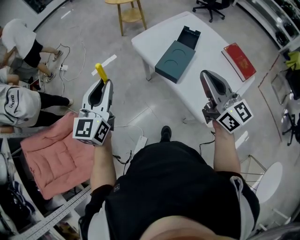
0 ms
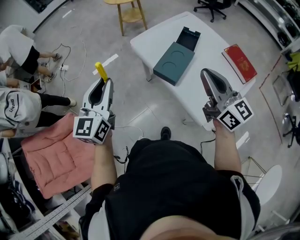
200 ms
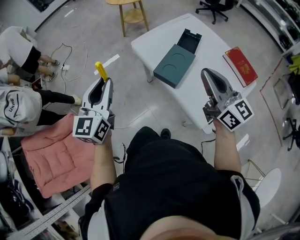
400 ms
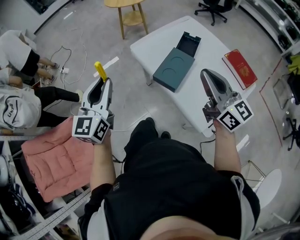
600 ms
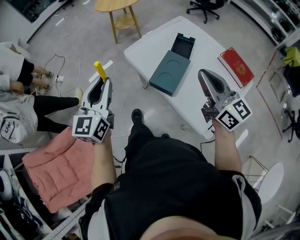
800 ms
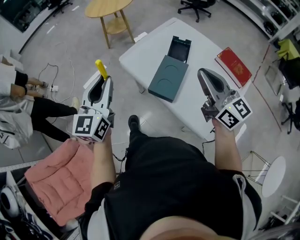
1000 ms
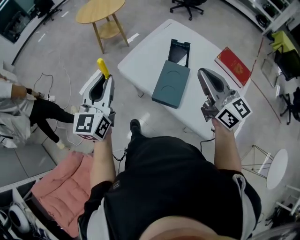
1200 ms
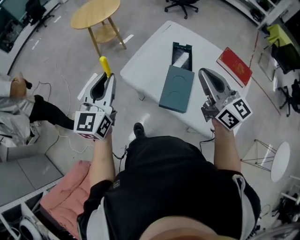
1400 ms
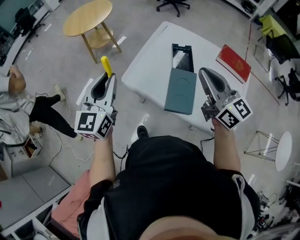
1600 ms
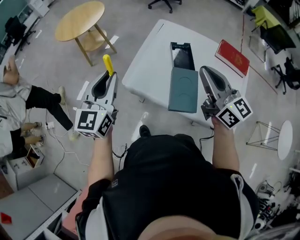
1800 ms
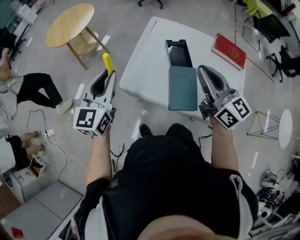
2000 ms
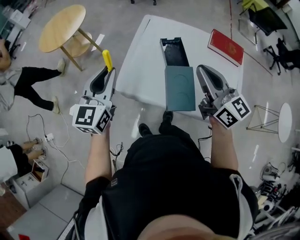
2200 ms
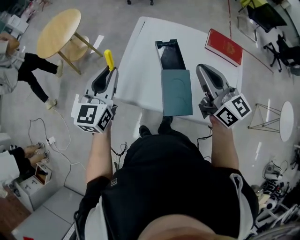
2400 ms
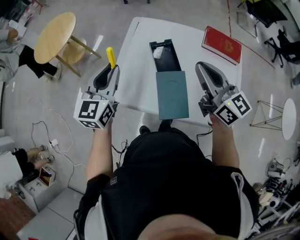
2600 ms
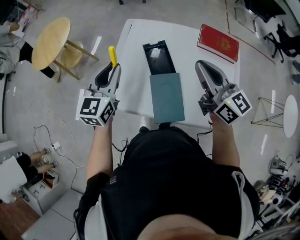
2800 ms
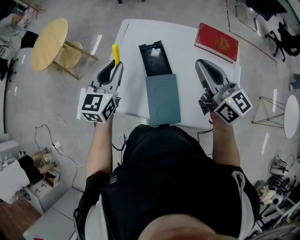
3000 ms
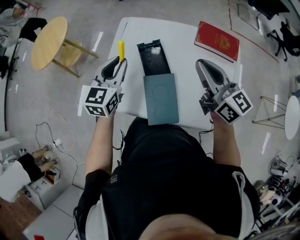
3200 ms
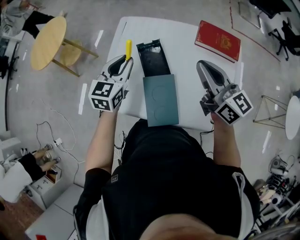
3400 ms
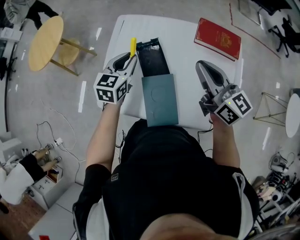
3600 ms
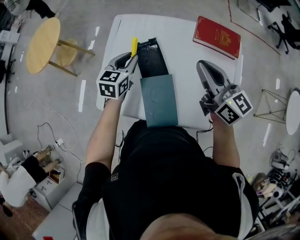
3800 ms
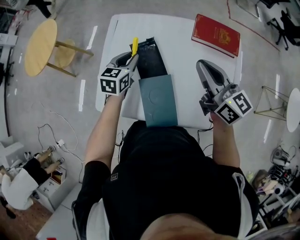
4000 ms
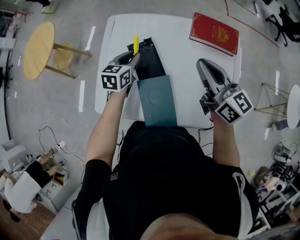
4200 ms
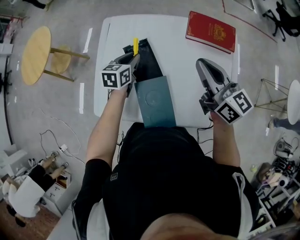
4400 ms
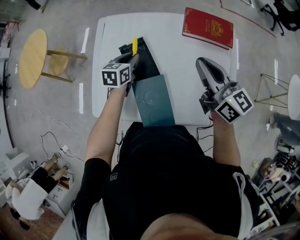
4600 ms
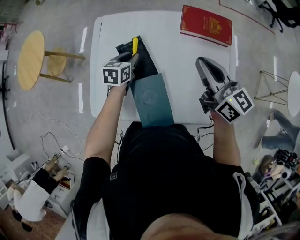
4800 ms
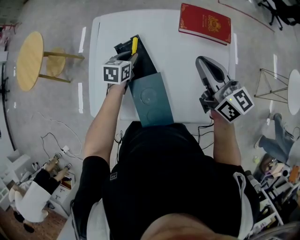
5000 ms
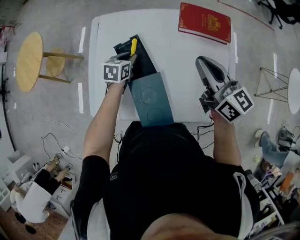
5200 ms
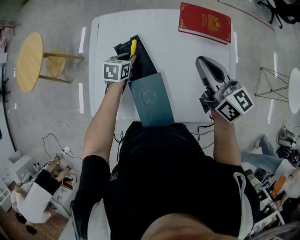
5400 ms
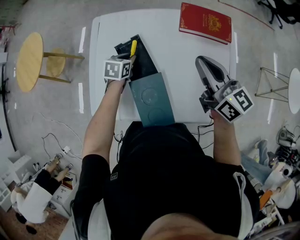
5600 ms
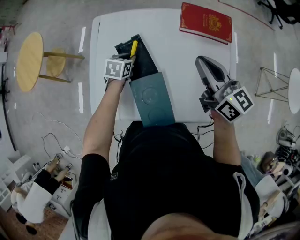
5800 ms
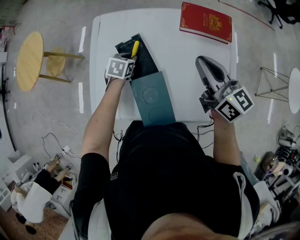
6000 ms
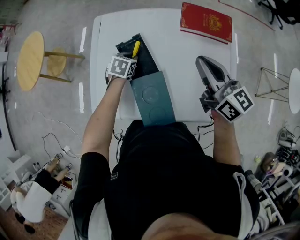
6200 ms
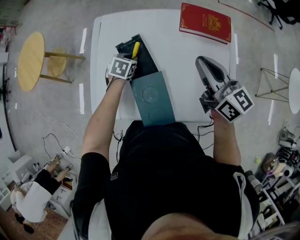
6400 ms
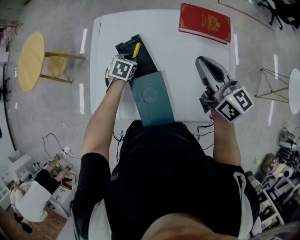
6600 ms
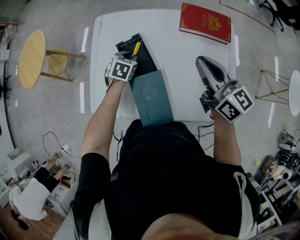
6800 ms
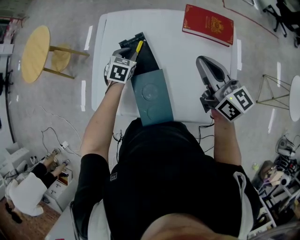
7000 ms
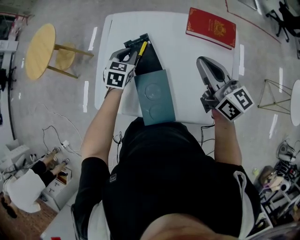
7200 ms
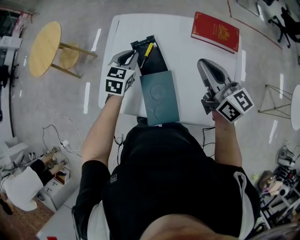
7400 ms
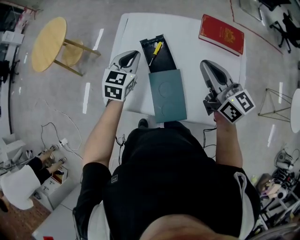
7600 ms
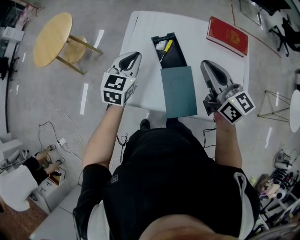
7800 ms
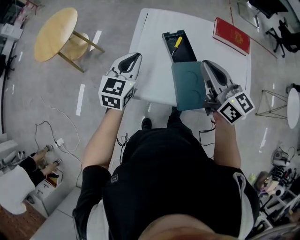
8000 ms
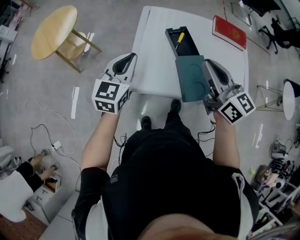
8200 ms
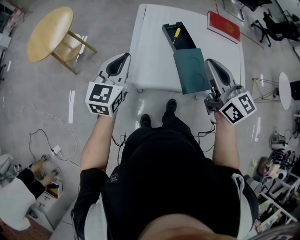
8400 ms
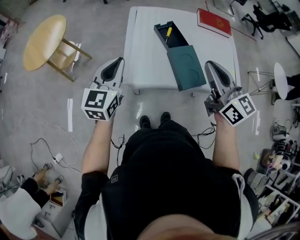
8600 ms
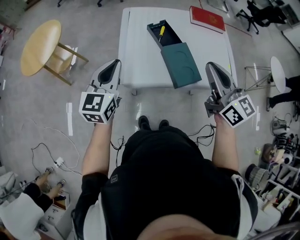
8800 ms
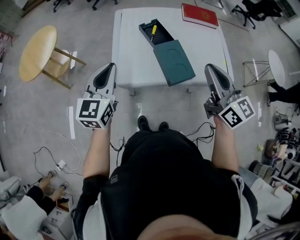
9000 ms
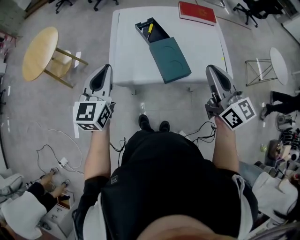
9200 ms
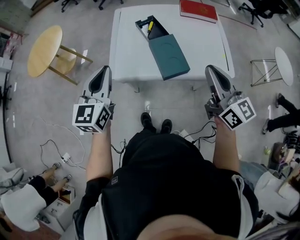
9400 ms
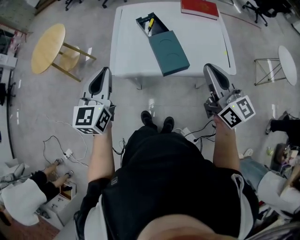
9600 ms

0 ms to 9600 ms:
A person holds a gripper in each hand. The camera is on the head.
0 ms to 1600 ms: The grippers both shift forward by some 30 cm. The right gripper changes its angle by approximately 20 degrees. The left gripper changes its angle by some 20 degrees.
1600 ms to 3200 ms: The left gripper goes approximately 30 cm forward, to the right and downward, and changes its angle by approximately 30 degrees. The right gripper travels to the right and forward by roughly 15 cm.
3200 ms to 4800 ms: The left gripper is displaced downward, to the right and forward by roughly 25 cm, and turns by some 30 degrees, while the right gripper shifts roughly 5 cm to the right.
4800 ms to 6400 ms: The left gripper moves downward, about 5 cm, and turns by approximately 20 degrees.
6400 ms to 8000 ms: The left gripper is displaced upward, to the left and backward by approximately 35 cm, and tips its fingers upward by about 40 degrees, while the right gripper is displaced to the left and backward by approximately 20 cm.
8000 ms to 9600 ms: The grippers both shift backward by roughly 25 cm.

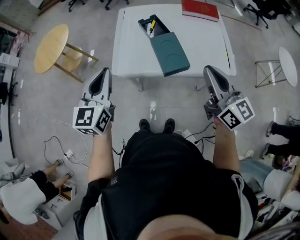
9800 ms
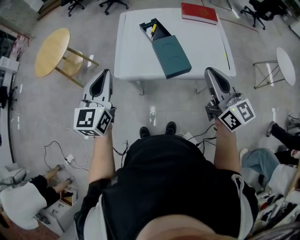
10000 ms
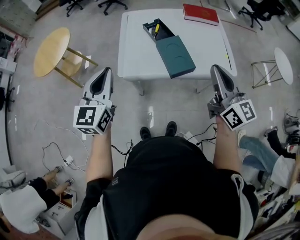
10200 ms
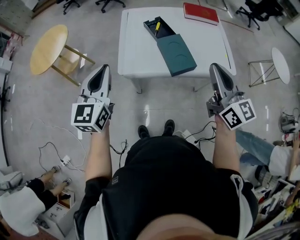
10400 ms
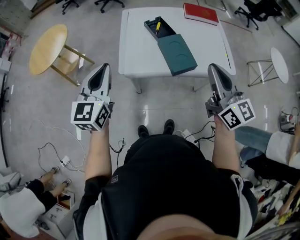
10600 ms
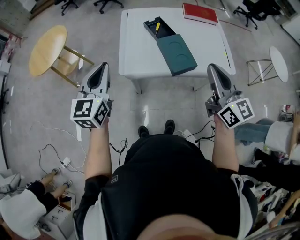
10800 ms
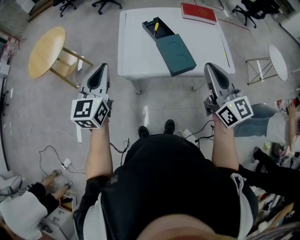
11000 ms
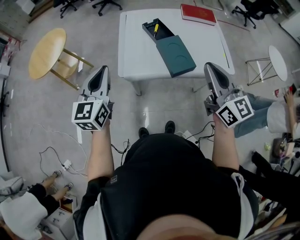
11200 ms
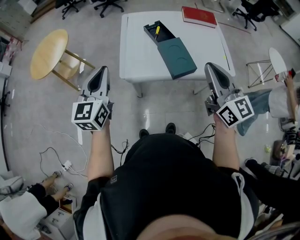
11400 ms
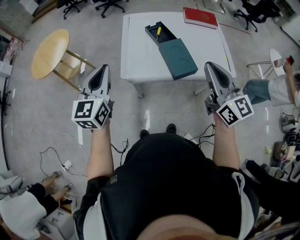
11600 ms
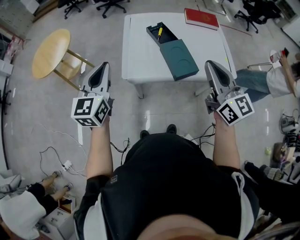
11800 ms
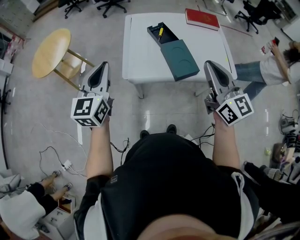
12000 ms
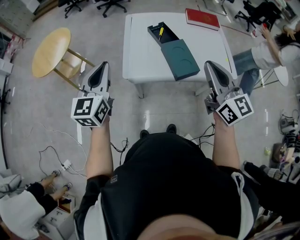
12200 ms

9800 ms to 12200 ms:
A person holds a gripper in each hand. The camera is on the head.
9800 ms to 11000 ms: Both grippers travel together to the left, roughly 10 cm.
11000 ms to 12200 ms: The grippers make only small movements.

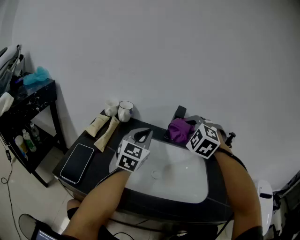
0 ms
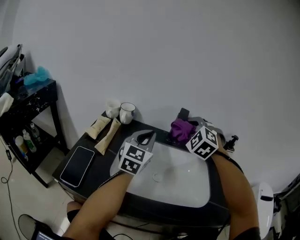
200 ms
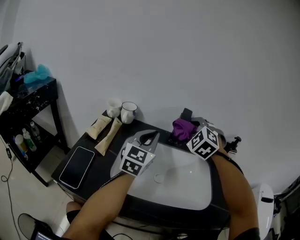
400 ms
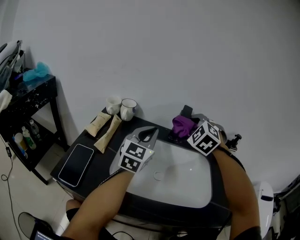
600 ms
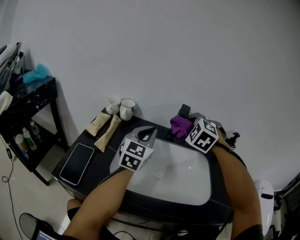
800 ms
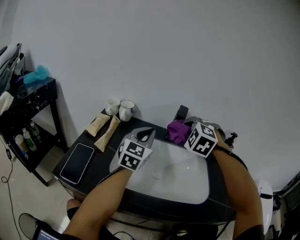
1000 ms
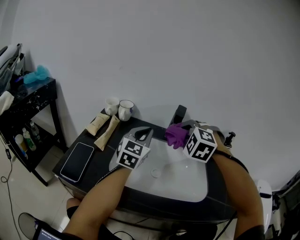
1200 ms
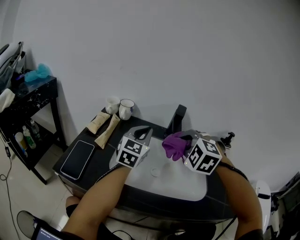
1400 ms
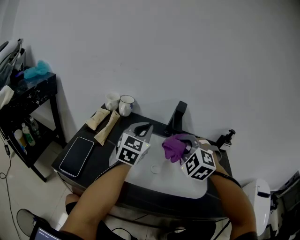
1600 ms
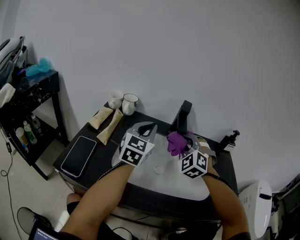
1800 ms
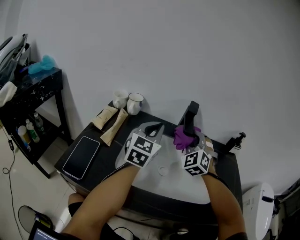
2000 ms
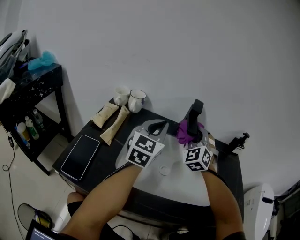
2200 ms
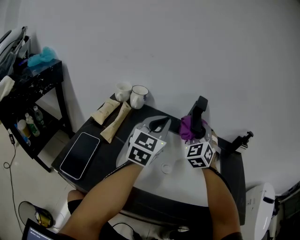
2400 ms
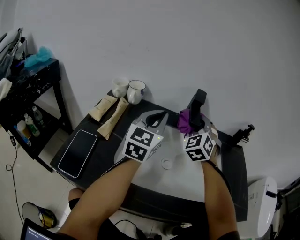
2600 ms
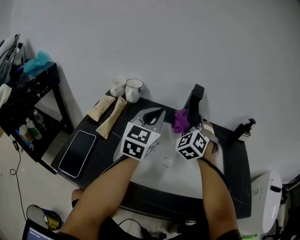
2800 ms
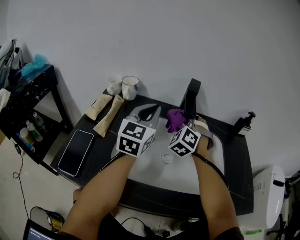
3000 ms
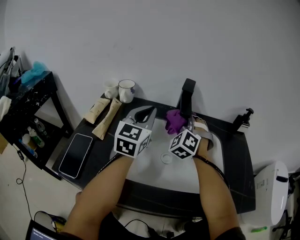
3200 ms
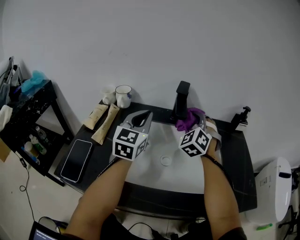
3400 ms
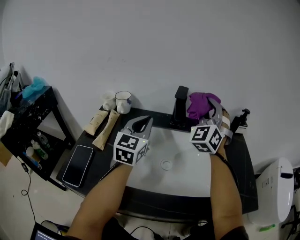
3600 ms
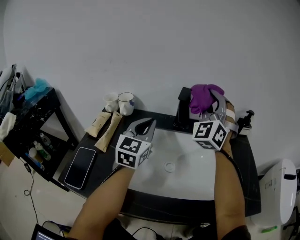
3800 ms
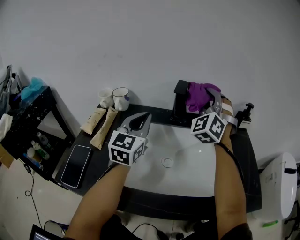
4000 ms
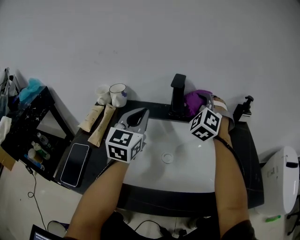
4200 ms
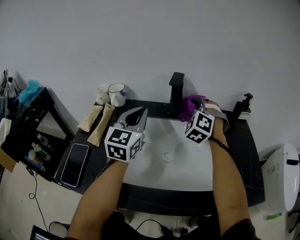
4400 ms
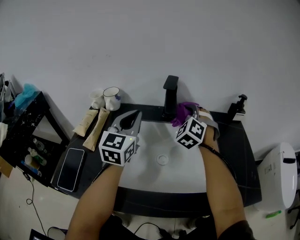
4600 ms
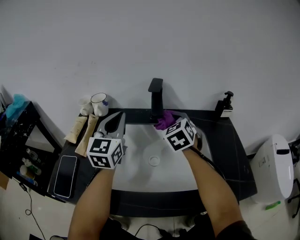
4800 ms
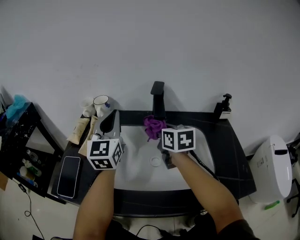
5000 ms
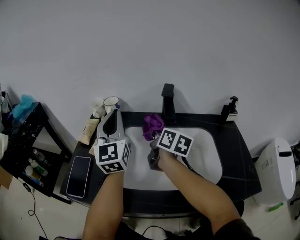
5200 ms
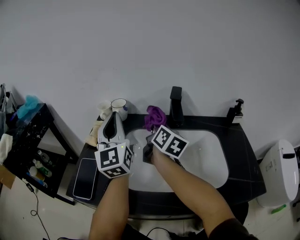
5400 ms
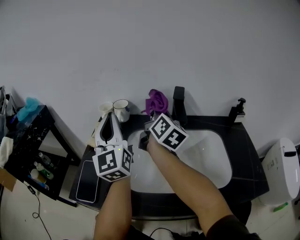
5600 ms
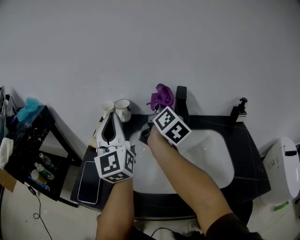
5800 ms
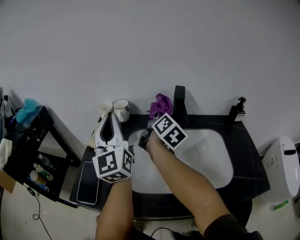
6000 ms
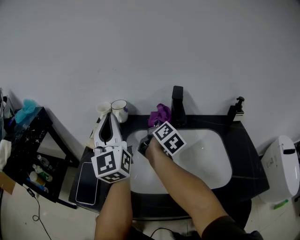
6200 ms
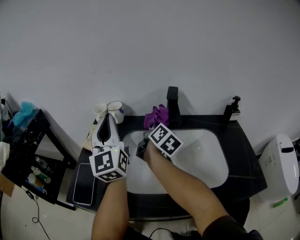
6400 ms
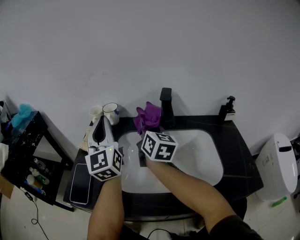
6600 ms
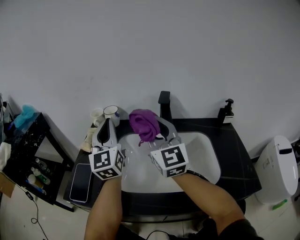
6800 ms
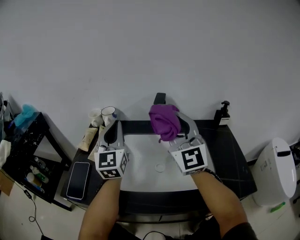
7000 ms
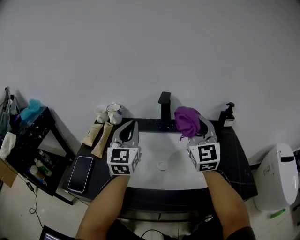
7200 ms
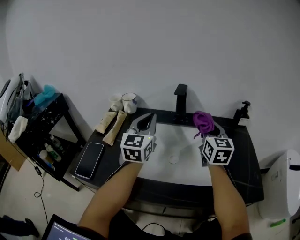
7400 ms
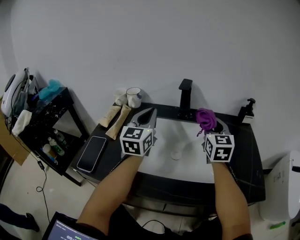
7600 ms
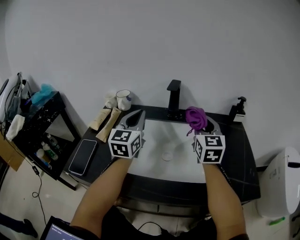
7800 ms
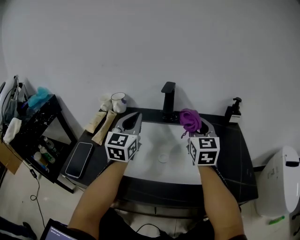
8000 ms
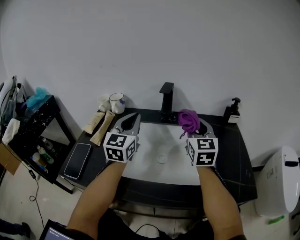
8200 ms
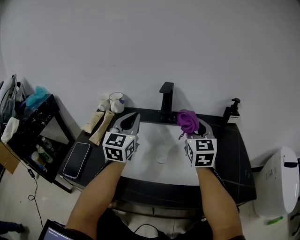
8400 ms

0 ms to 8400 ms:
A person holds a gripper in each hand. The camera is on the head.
0 ms to 1400 ms: The right gripper shifts some 10 cm backward.
1400 ms to 2800 ms: The right gripper moves forward and downward, some 15 cm, and rotates approximately 30 degrees.
2800 ms to 4200 ms: The right gripper is displaced to the right by some 5 cm, and travels upward and back again, some 15 cm each way.
4200 ms to 5600 ms: The right gripper shifts approximately 15 cm to the left, and rolls clockwise, seen from behind, by some 110 degrees; the left gripper moves to the left, upward and backward, about 20 cm, and changes its angle by some 40 degrees.
5600 ms to 7000 ms: The right gripper shifts approximately 20 cm backward, upward and to the right, and rotates around the line of its fingers by approximately 60 degrees, counterclockwise from behind. Meanwhile the left gripper is displaced to the right by about 10 cm.
7000 ms to 8400 ms: The left gripper heads to the right, covering about 5 cm. The right gripper heads downward, to the right and forward, covering some 15 cm, and rotates about 30 degrees.

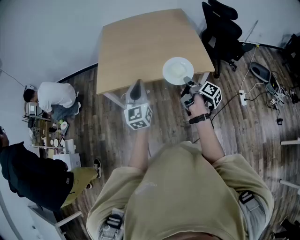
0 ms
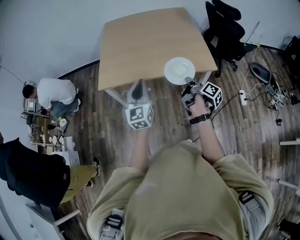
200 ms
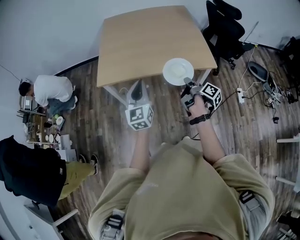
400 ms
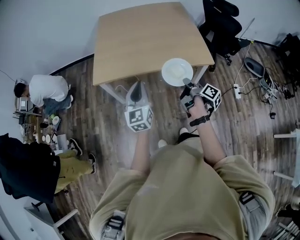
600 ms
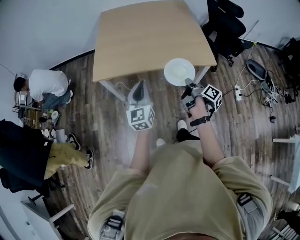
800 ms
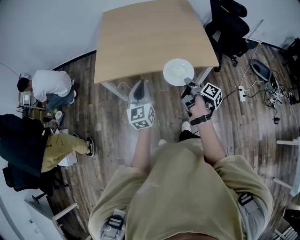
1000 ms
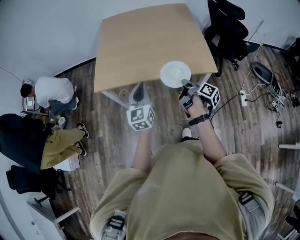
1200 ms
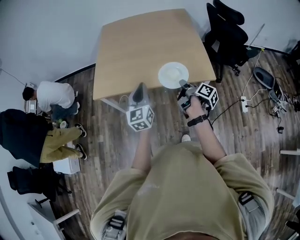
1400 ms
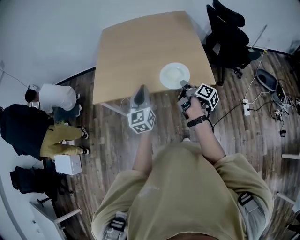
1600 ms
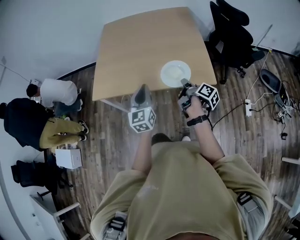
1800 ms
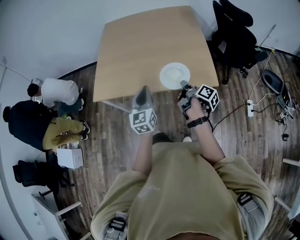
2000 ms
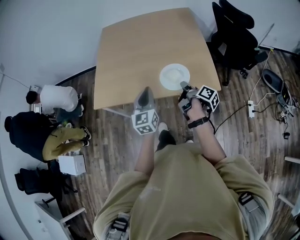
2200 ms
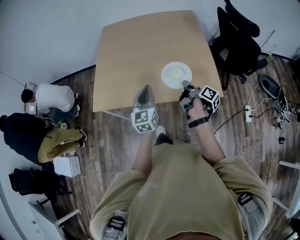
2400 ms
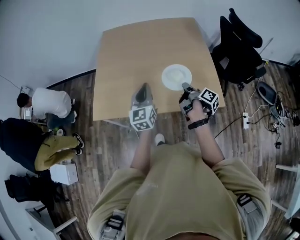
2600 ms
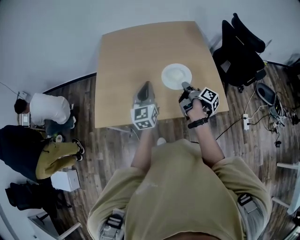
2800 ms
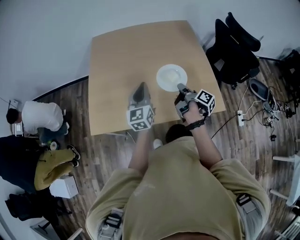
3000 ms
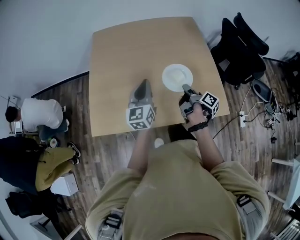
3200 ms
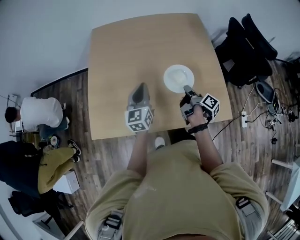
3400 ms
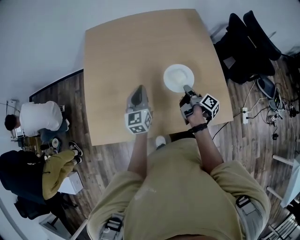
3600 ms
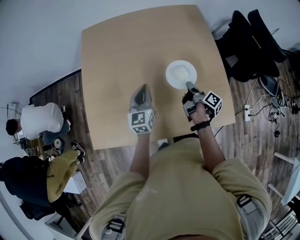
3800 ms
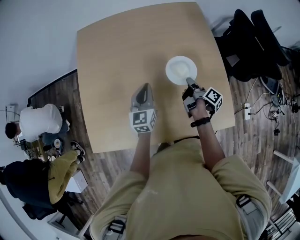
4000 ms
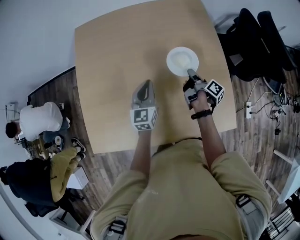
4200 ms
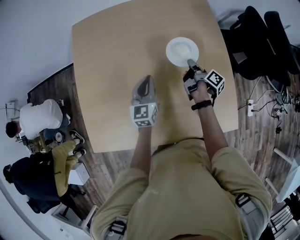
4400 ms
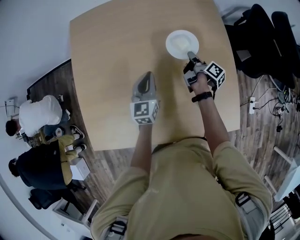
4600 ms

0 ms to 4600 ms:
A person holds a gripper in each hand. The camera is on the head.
0 ms to 1600 ms: The left gripper shifts by approximately 15 cm.
1600 ms to 3000 ms: The left gripper moves about 30 cm.
3000 ms to 4600 ms: The left gripper changes place by roughly 30 cm.
